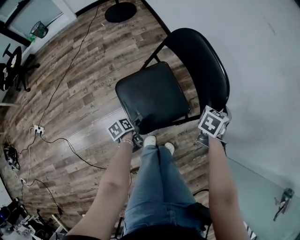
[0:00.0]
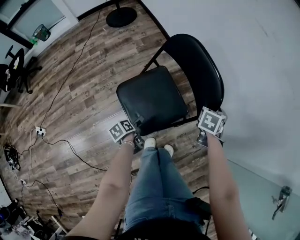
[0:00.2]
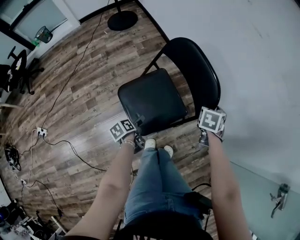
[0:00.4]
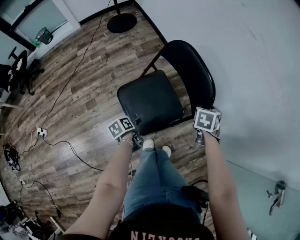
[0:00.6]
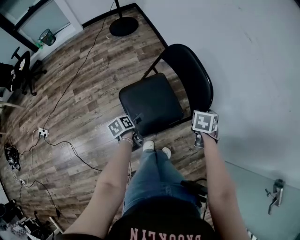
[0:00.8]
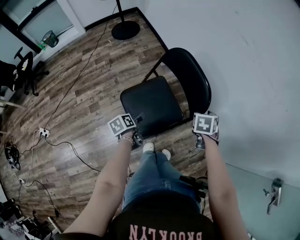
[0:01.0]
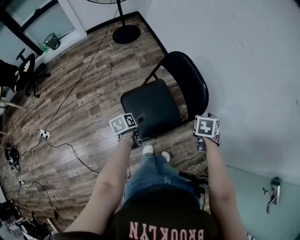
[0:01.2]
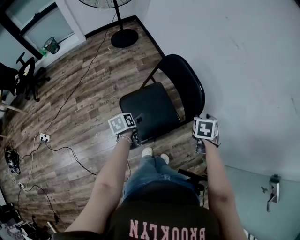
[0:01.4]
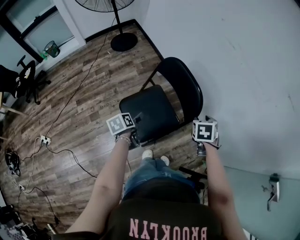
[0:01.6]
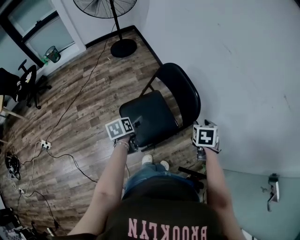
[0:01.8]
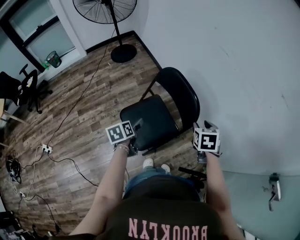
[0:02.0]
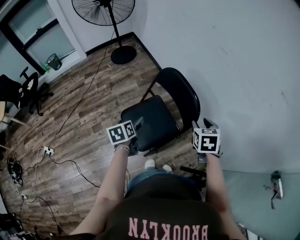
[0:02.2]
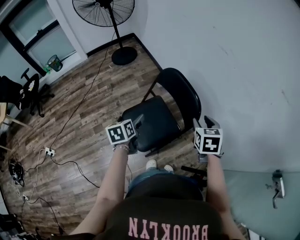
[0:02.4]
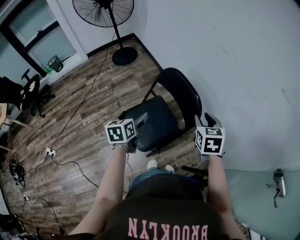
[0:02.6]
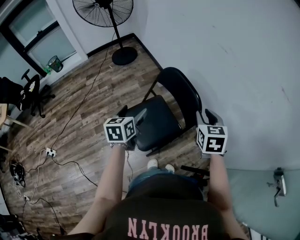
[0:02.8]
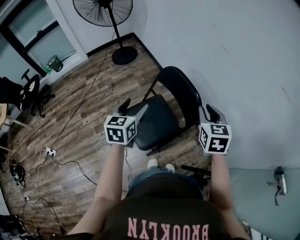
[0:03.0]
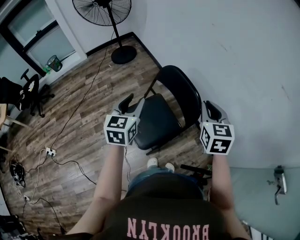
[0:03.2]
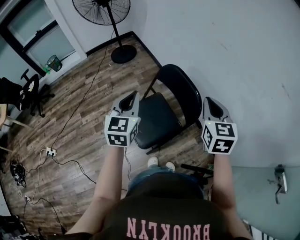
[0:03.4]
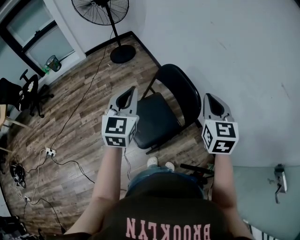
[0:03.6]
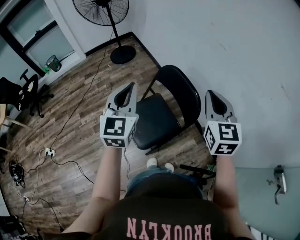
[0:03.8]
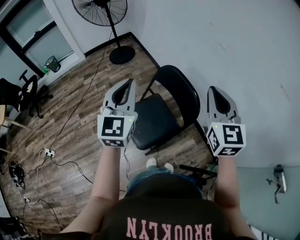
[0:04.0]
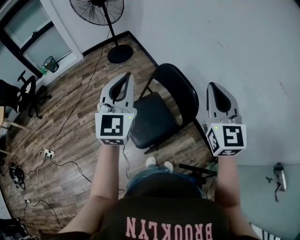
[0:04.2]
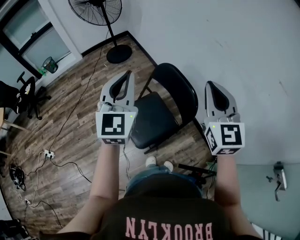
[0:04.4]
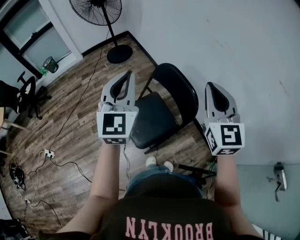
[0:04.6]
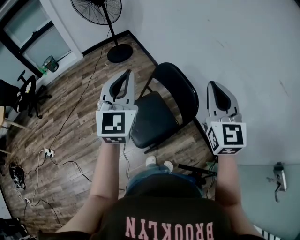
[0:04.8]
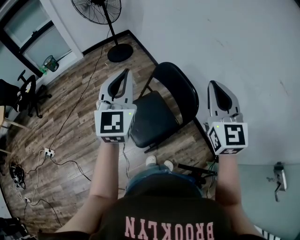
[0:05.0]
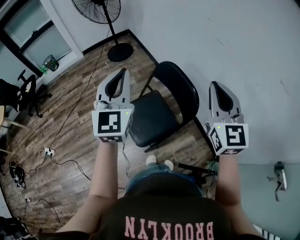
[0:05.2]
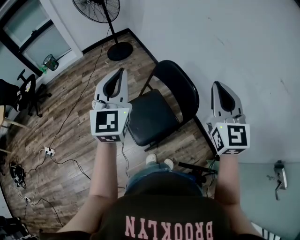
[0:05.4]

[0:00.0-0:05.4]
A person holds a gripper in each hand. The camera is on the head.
0:00.0 to 0:01.4: The left gripper moves upward, about 20 cm, while the right gripper shifts approximately 10 cm upward and backward, and rotates some 20 degrees.
0:01.4 to 0:02.8: Both grippers move upward, roughly 15 cm. The left gripper changes its angle by roughly 40 degrees. The right gripper swivels approximately 30 degrees.
0:02.8 to 0:04.0: Both grippers travel together upward, about 15 cm. The right gripper turns by roughly 30 degrees. Meanwhile the left gripper rotates roughly 40 degrees, and closes.
0:04.0 to 0:05.4: The grippers move only a little.

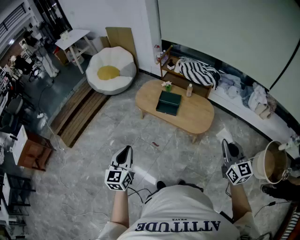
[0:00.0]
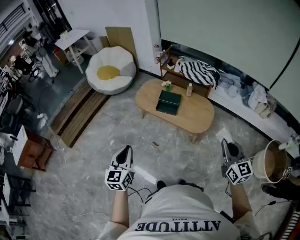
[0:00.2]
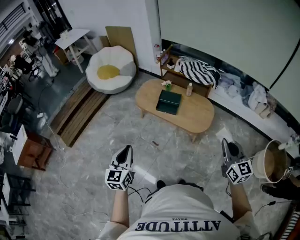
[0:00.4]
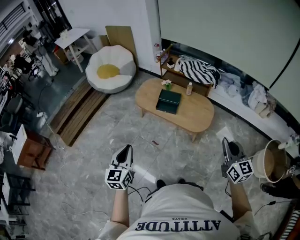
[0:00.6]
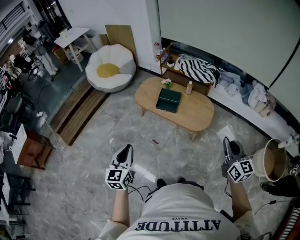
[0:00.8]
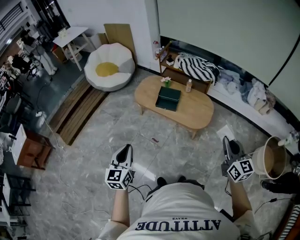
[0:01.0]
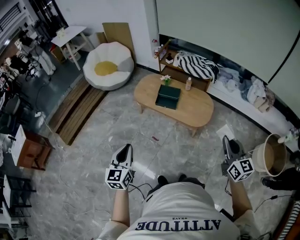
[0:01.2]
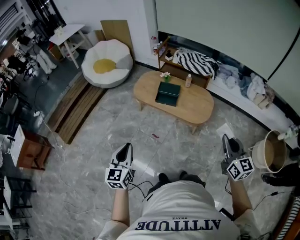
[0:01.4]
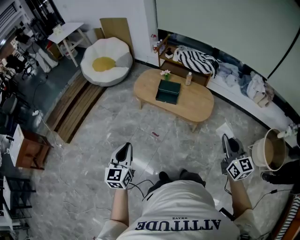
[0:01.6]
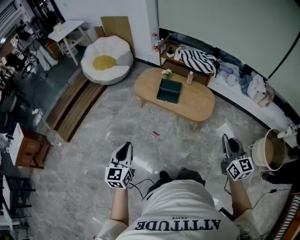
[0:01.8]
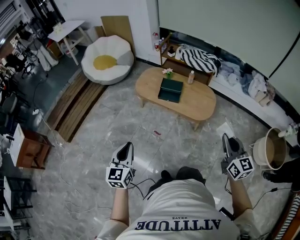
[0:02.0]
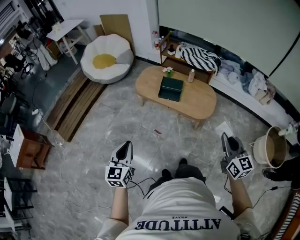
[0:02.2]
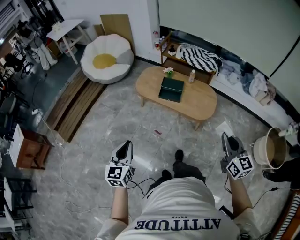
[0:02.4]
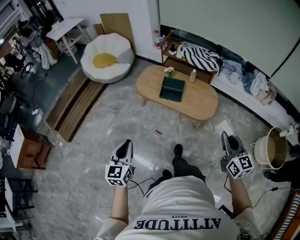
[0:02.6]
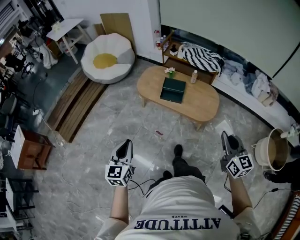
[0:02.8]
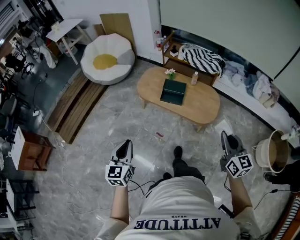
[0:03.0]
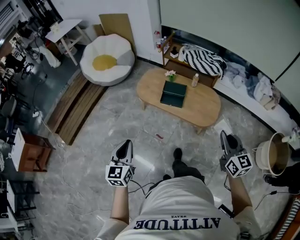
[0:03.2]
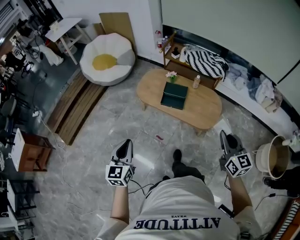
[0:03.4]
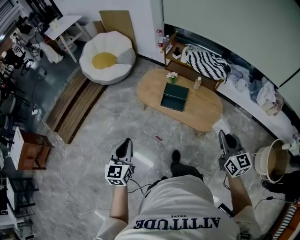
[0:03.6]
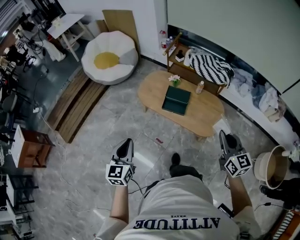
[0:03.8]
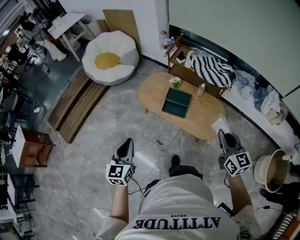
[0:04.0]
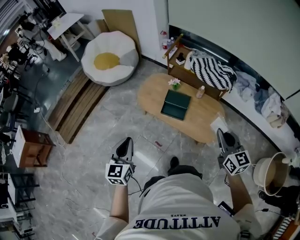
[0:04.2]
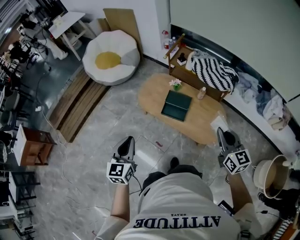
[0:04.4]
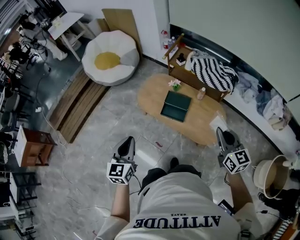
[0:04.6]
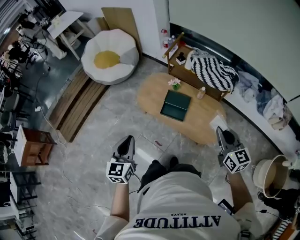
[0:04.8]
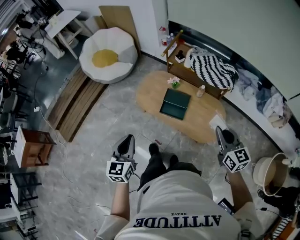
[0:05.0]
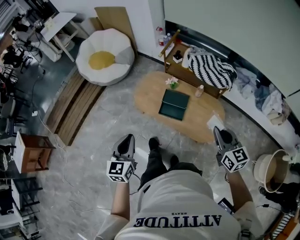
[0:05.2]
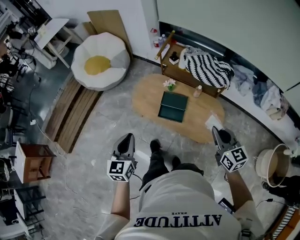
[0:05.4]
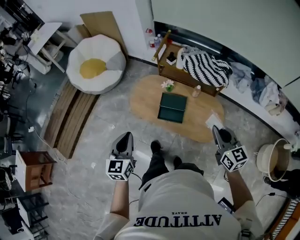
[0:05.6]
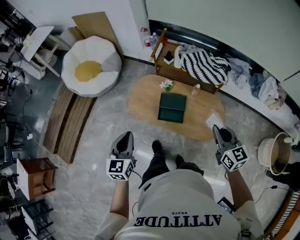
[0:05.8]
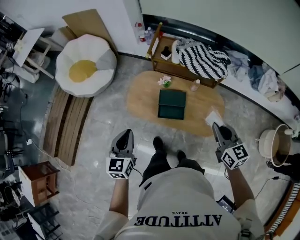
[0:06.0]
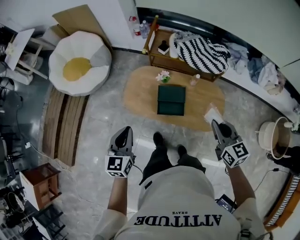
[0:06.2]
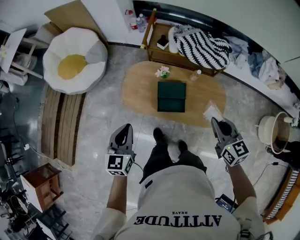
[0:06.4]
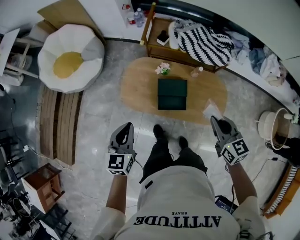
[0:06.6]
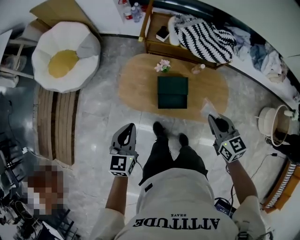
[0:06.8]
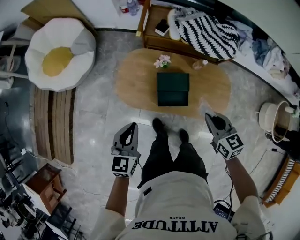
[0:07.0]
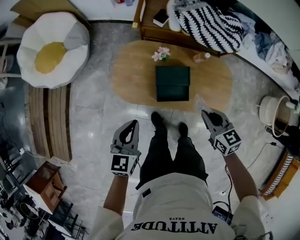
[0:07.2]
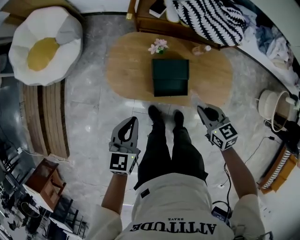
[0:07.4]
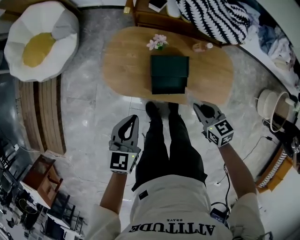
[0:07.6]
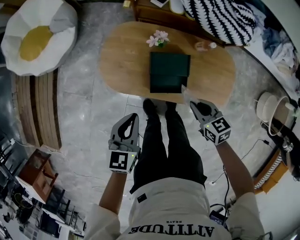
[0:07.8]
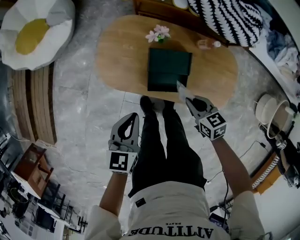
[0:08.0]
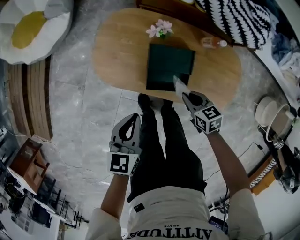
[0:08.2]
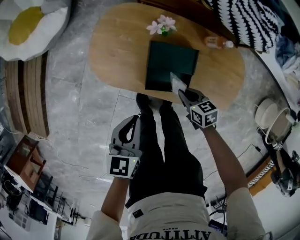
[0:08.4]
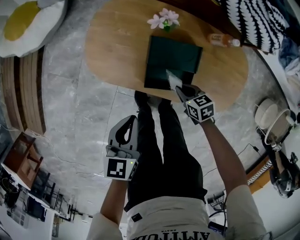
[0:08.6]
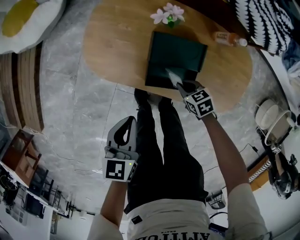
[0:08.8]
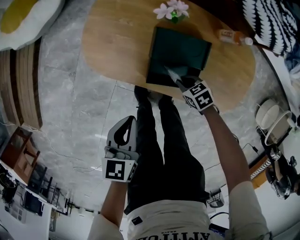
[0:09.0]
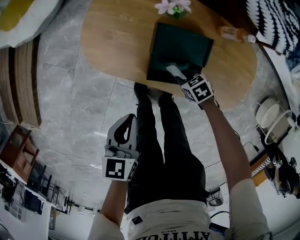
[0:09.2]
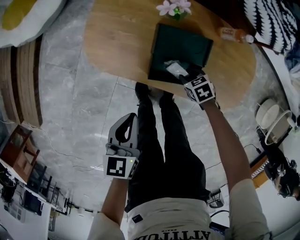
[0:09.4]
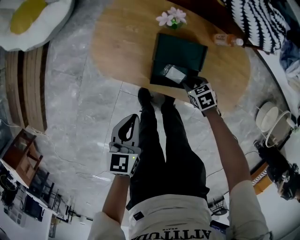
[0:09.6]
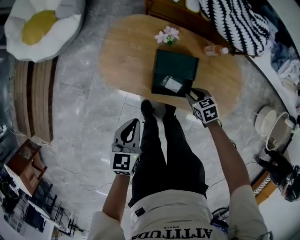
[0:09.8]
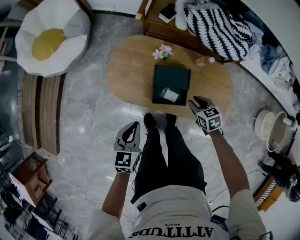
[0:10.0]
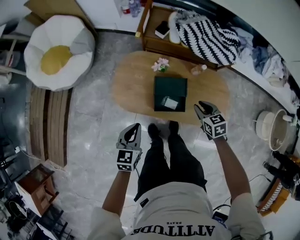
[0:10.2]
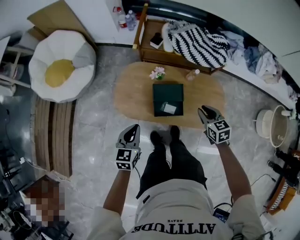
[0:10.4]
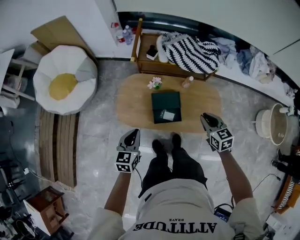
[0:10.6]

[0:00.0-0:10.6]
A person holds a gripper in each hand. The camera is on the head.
0:00.0 to 0:01.6: Both grippers move to the left, roughly 5 cm.
0:01.6 to 0:03.0: The grippers both shift forward by some 10 cm.
0:03.0 to 0:04.6: The right gripper heads forward, covering some 30 cm, while the left gripper travels forward and to the right by approximately 25 cm.
0:04.6 to 0:06.0: The right gripper goes some 15 cm forward and to the left. The left gripper heads forward, covering about 20 cm.
0:06.0 to 0:07.6: Both grippers move downward and forward, roughly 30 cm. The left gripper turns by about 20 degrees. Meanwhile the right gripper changes its angle by roughly 30 degrees.
0:07.6 to 0:09.0: The left gripper shifts roughly 20 cm downward, and rotates approximately 20 degrees. The right gripper travels downward by roughly 35 cm, and swivels some 30 degrees.
0:09.0 to 0:10.6: The left gripper heads upward, covering roughly 25 cm, and rotates some 20 degrees. The right gripper goes some 50 cm upward, turns by about 50 degrees, and opens and closes again.

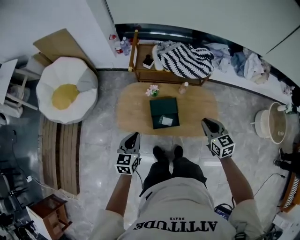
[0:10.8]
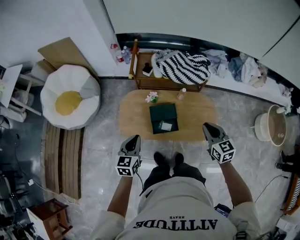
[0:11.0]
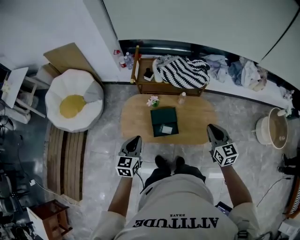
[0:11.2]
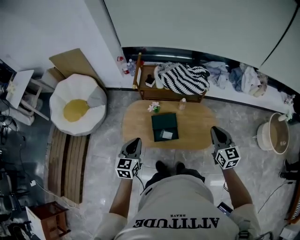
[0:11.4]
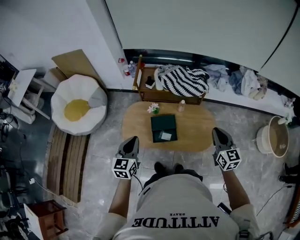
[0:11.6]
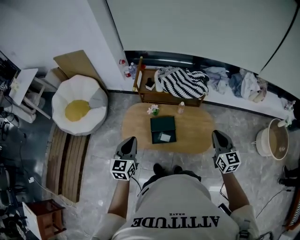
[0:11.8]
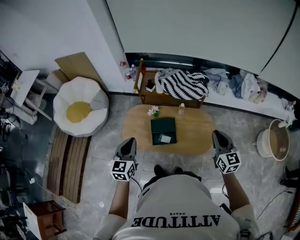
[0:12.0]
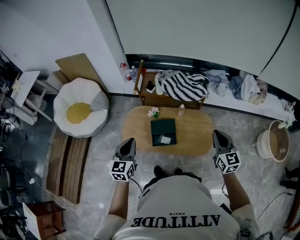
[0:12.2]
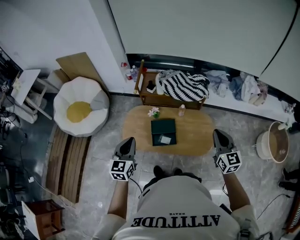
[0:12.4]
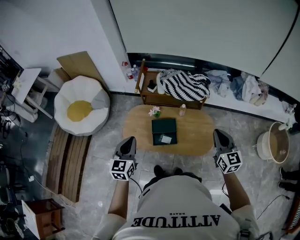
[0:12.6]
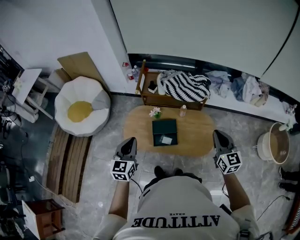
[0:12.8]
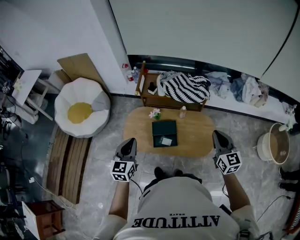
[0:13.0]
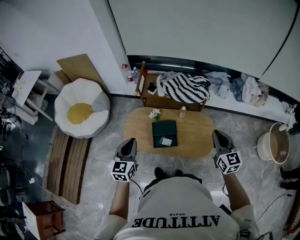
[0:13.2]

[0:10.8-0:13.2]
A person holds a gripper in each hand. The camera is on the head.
0:10.8 to 0:12.0: The right gripper goes approximately 20 cm upward, to the right and backward, and changes its angle by some 20 degrees, while the left gripper goes roughly 15 cm upward.
0:12.0 to 0:13.2: The grippers stay close to where they were, moving slightly.

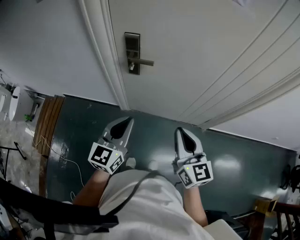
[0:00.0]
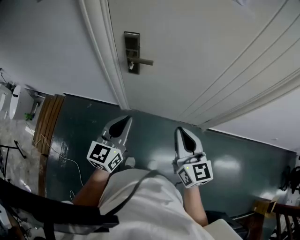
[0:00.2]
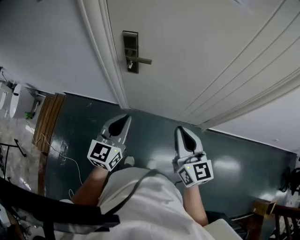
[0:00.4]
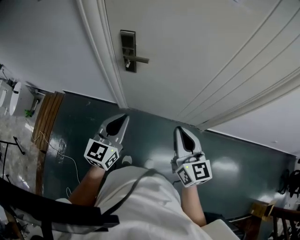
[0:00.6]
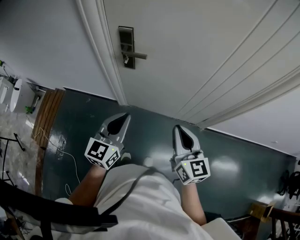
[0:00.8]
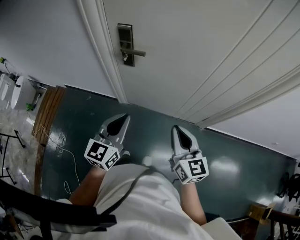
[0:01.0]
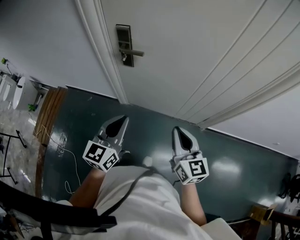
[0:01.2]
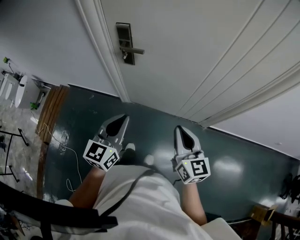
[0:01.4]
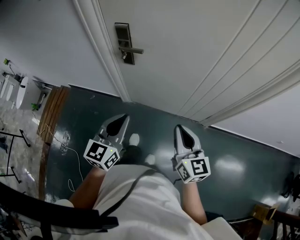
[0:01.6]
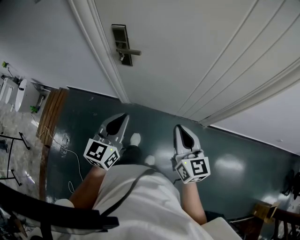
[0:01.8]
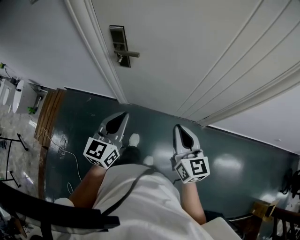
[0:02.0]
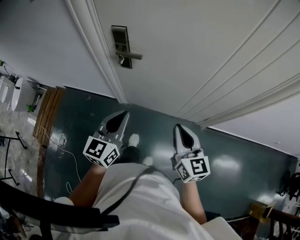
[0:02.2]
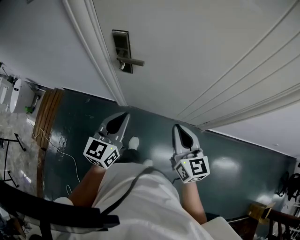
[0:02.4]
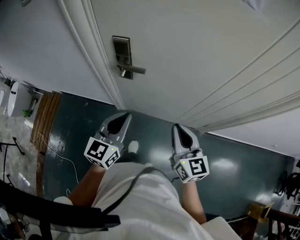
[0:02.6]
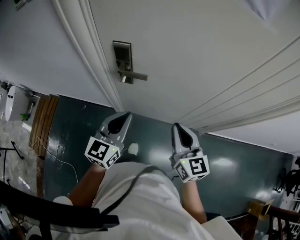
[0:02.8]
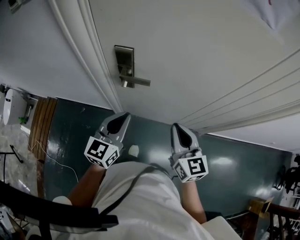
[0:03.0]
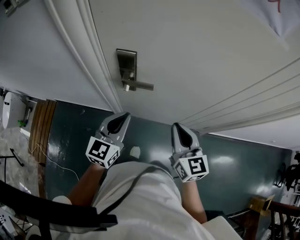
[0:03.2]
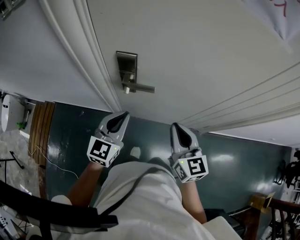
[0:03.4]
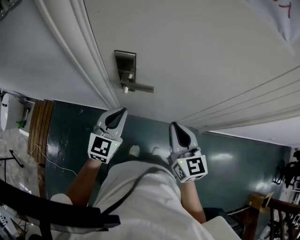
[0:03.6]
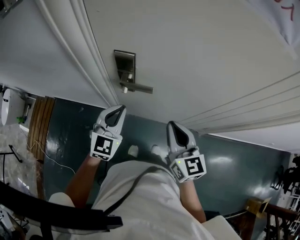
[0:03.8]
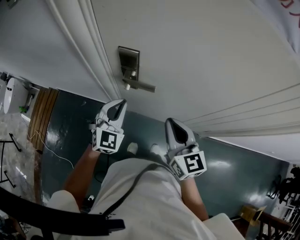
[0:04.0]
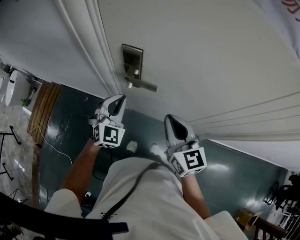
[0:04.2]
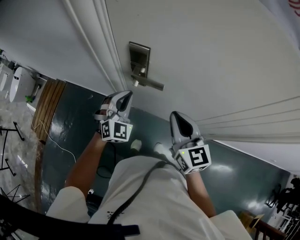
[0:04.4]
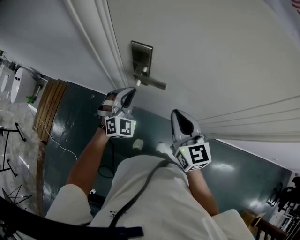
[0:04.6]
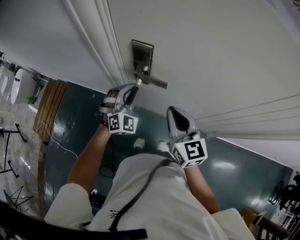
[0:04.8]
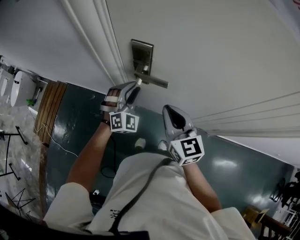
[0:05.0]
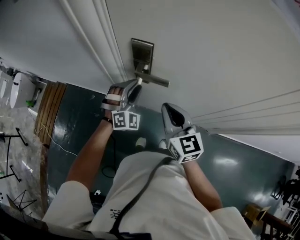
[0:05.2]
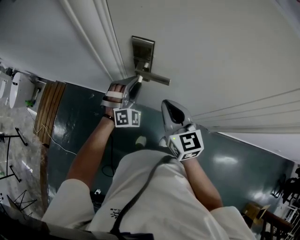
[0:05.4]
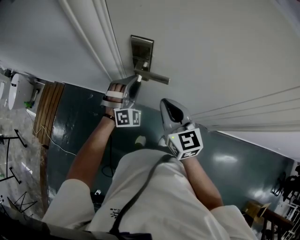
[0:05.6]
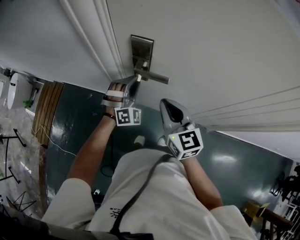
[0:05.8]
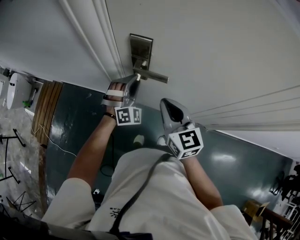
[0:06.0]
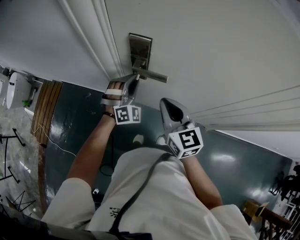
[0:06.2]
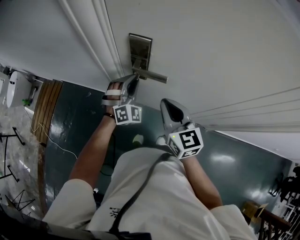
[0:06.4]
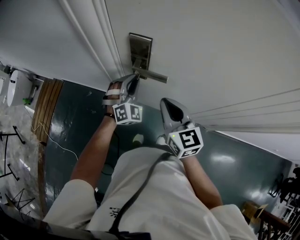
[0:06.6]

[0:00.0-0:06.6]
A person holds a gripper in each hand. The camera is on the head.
0:00.0 to 0:01.6: The two grippers go about 10 cm to the right.
0:01.6 to 0:03.2: The two grippers go about 25 cm forward and to the left.
0:03.2 to 0:05.0: The right gripper travels forward and to the left by some 10 cm. The left gripper shifts some 15 cm forward and downward, twists approximately 50 degrees clockwise, seen from behind, and opens its fingers.
0:05.0 to 0:06.6: The grippers stay close to where they were, moving slightly.
